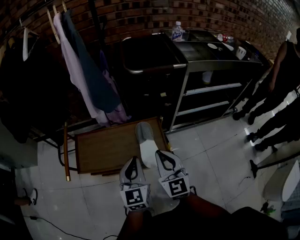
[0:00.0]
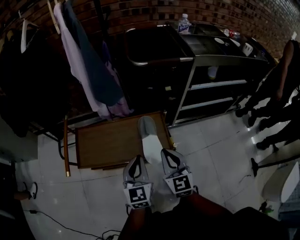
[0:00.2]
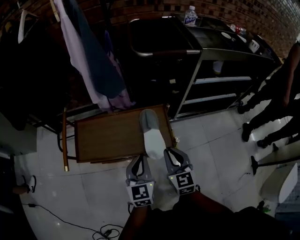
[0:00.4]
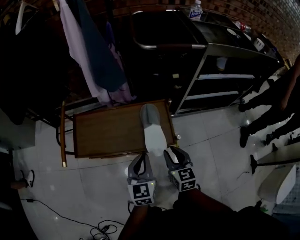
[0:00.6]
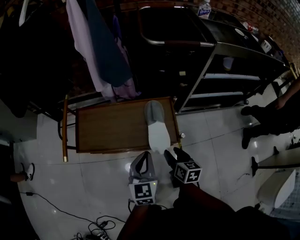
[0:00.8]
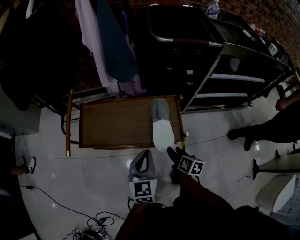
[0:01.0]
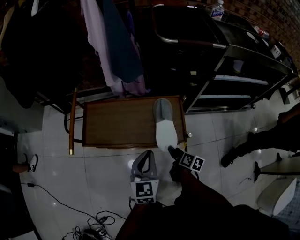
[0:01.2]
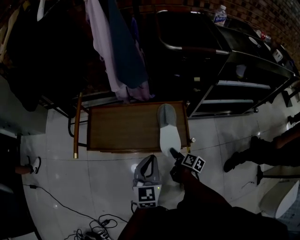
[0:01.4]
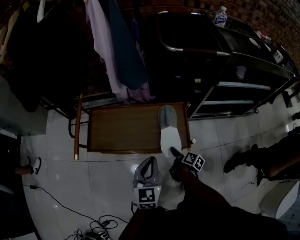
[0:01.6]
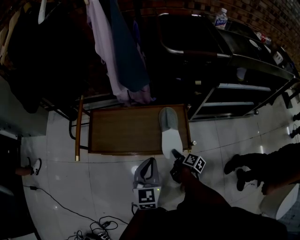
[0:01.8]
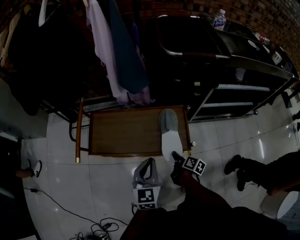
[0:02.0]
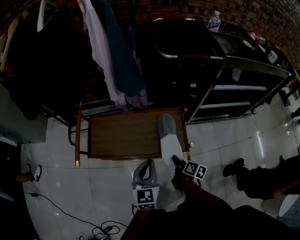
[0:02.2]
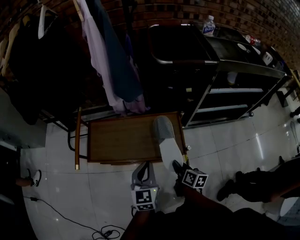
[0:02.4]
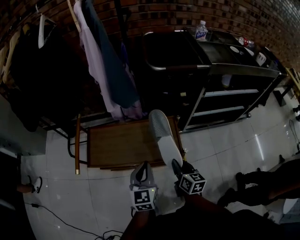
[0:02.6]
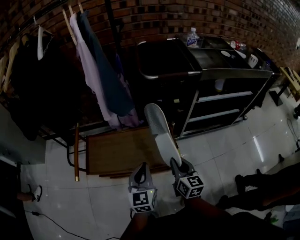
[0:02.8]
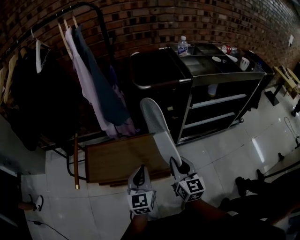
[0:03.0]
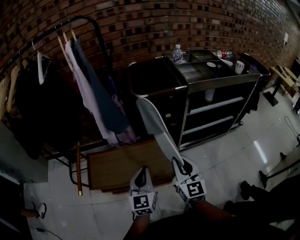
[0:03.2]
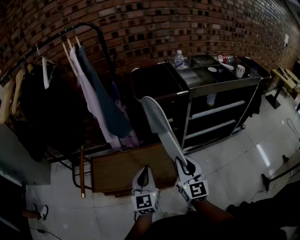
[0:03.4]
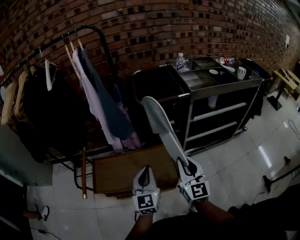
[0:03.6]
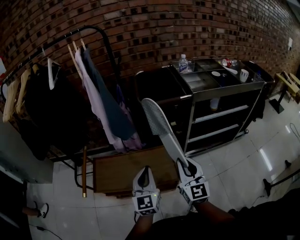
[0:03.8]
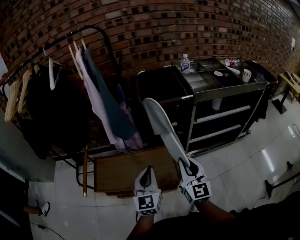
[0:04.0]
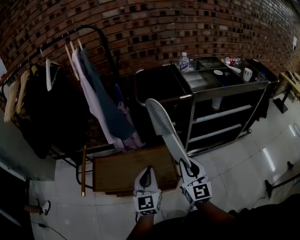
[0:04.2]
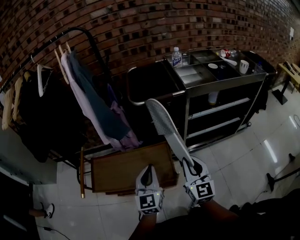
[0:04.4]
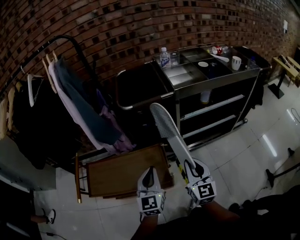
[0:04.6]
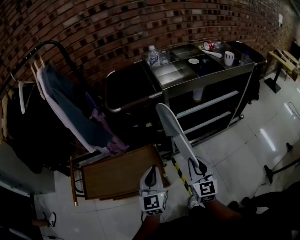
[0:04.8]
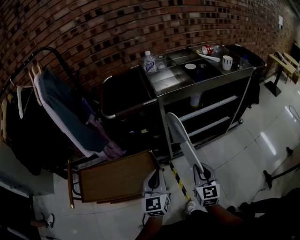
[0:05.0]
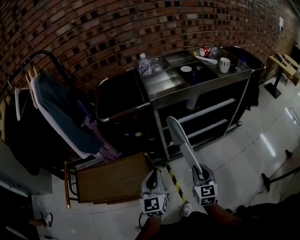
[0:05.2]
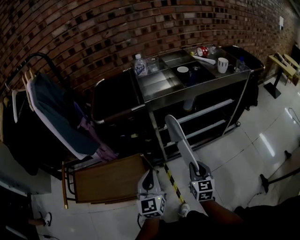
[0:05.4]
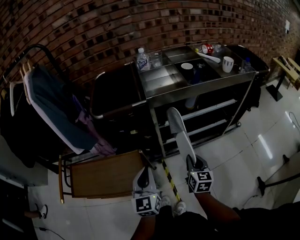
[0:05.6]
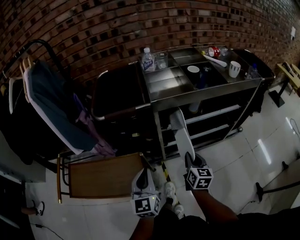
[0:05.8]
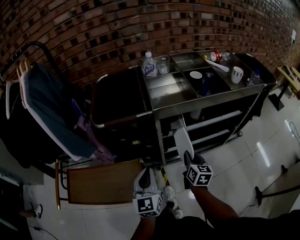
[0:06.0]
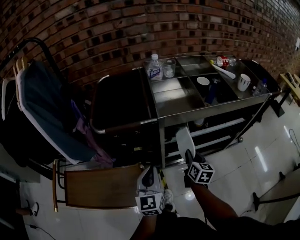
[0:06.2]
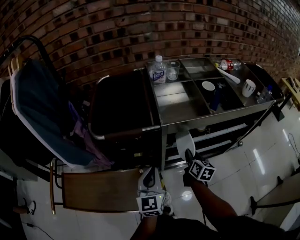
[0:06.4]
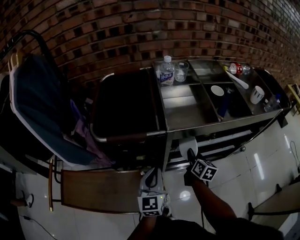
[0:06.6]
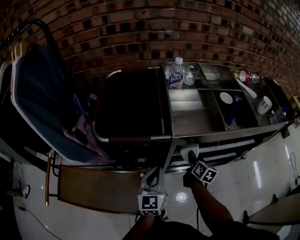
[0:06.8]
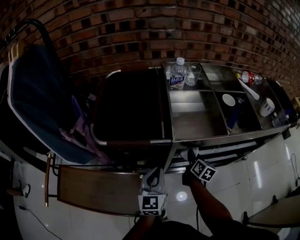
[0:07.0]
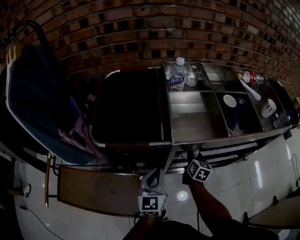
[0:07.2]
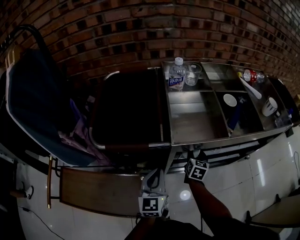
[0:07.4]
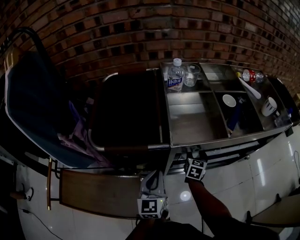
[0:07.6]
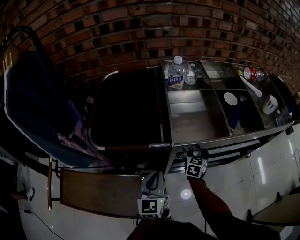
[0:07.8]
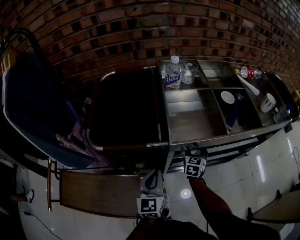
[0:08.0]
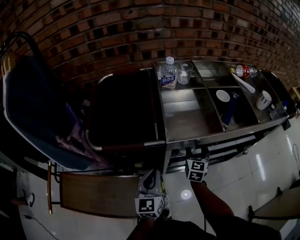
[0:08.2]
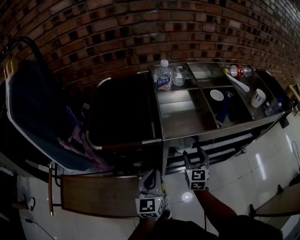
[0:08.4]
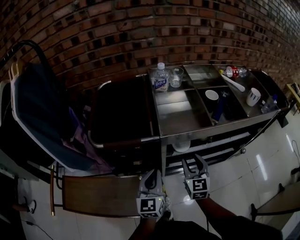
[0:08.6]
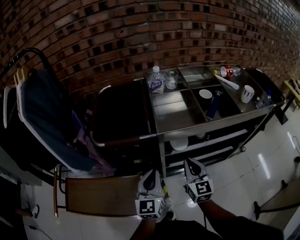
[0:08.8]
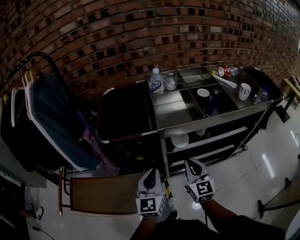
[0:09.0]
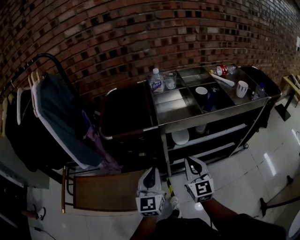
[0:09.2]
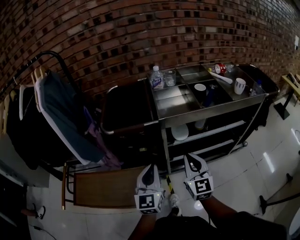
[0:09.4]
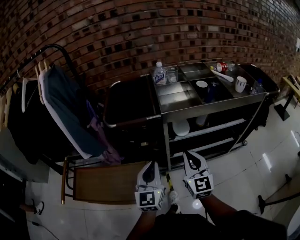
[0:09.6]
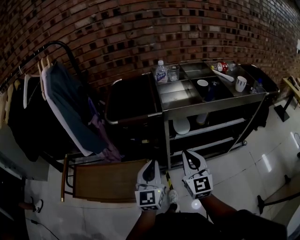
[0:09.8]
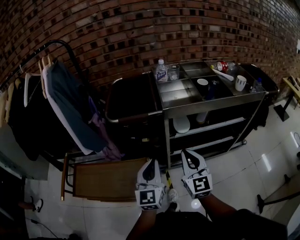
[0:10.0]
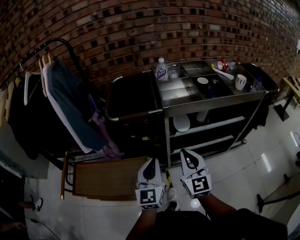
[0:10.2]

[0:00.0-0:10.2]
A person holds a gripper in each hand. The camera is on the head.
0:00.0 to 0:01.4: The left gripper shifts approximately 10 cm downward; the right gripper heads downward, covering approximately 30 cm, twists roughly 70 degrees clockwise, seen from behind, and opens up.
0:01.4 to 0:03.0: The left gripper heads upward, covering about 5 cm. The right gripper heads upward, covering about 30 cm, rotates around the line of its fingers by approximately 50 degrees, counterclockwise from behind, and closes.
0:03.0 to 0:04.4: Both grippers move to the right and upward, some 10 cm.
0:04.4 to 0:05.8: The right gripper moves to the right, forward and downward, some 30 cm, and rotates some 30 degrees. The left gripper moves to the right and forward, approximately 20 cm.
0:05.8 to 0:07.2: The two grippers go about 25 cm forward.
0:07.2 to 0:08.8: The left gripper goes roughly 10 cm upward and backward. The right gripper travels upward and backward by approximately 20 cm, swivels some 30 degrees, and opens and closes again.
0:08.8 to 0:10.2: The left gripper goes about 10 cm backward. Meanwhile the right gripper is displaced backward, upward and to the left by roughly 15 cm.

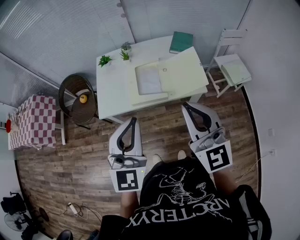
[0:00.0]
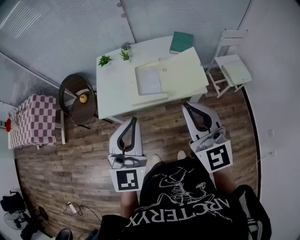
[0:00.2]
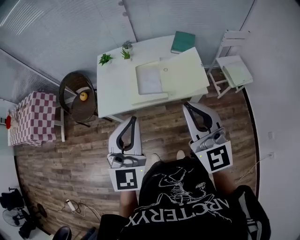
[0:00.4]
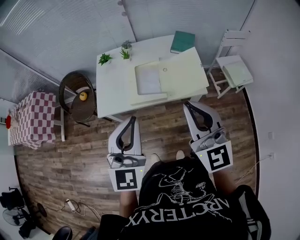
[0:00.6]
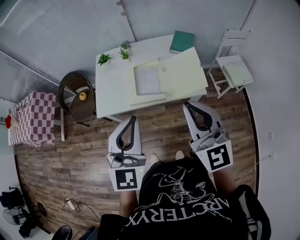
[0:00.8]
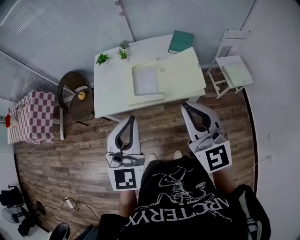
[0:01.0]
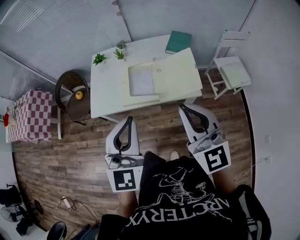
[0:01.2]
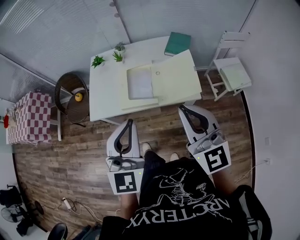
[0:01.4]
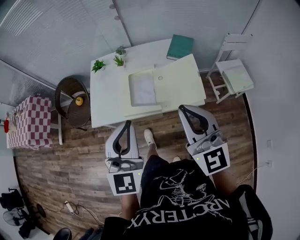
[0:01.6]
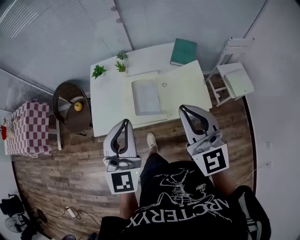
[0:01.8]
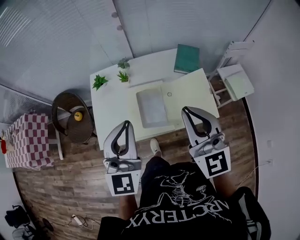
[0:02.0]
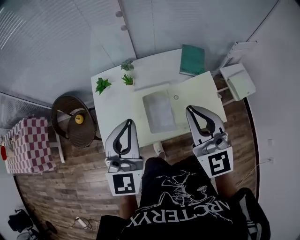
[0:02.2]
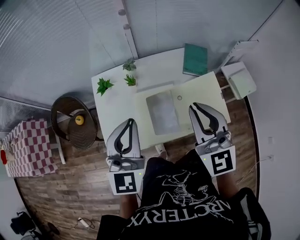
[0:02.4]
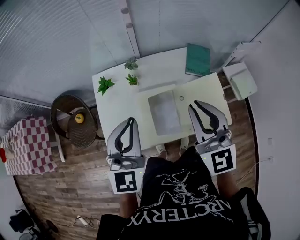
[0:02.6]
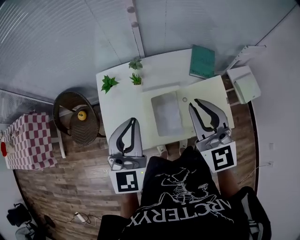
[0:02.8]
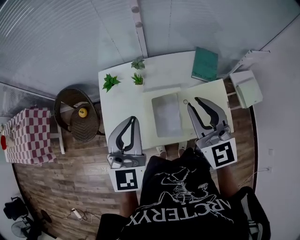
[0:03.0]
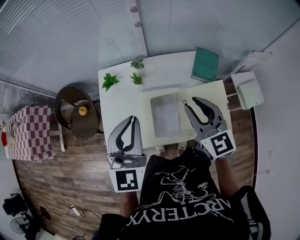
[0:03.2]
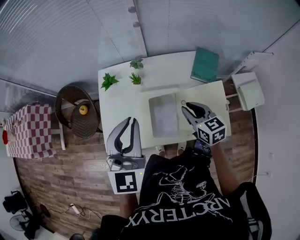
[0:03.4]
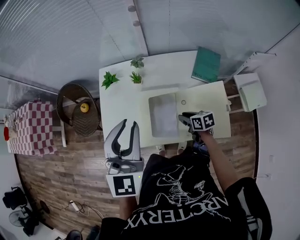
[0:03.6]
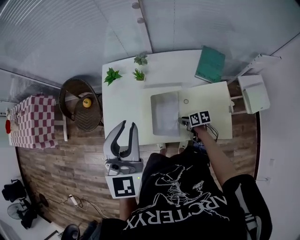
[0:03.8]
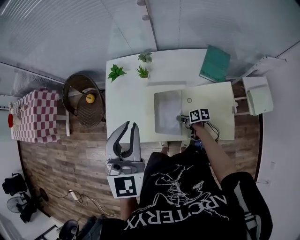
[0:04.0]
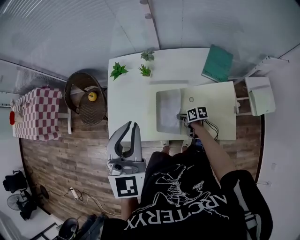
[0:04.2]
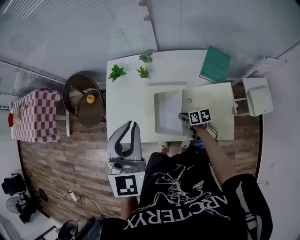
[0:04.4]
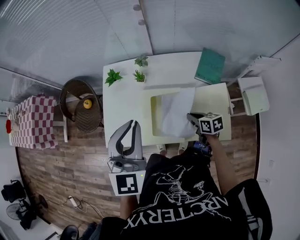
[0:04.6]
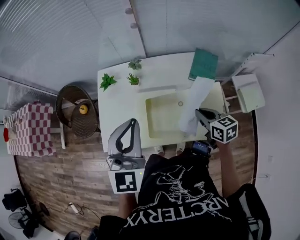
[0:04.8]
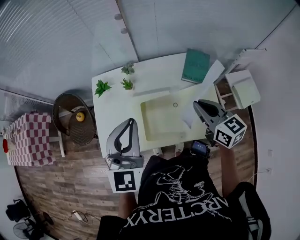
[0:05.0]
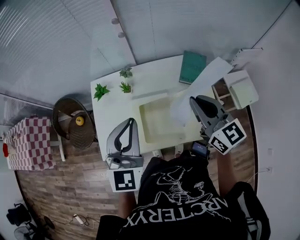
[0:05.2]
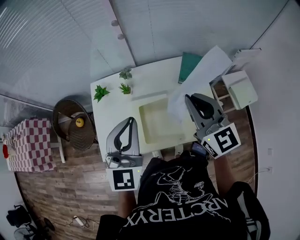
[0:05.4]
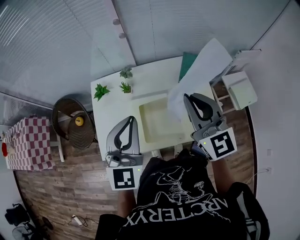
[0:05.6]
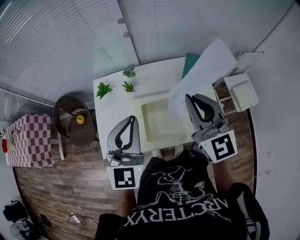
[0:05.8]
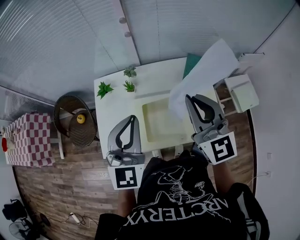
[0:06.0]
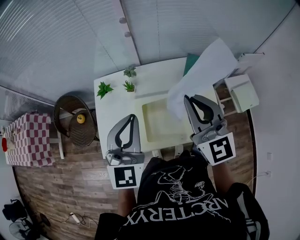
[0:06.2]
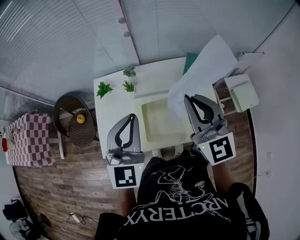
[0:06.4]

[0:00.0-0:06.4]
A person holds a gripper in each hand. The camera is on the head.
0:00.0 to 0:01.6: The left gripper moves forward, approximately 10 cm. The right gripper goes some 10 cm forward and to the right.
0:01.6 to 0:03.2: The left gripper moves forward and to the left, approximately 30 cm, while the right gripper shifts roughly 25 cm forward, and rotates roughly 20 degrees.
0:03.2 to 0:04.8: The right gripper is displaced downward by approximately 15 cm, and changes its angle by about 30 degrees.
0:04.8 to 0:06.4: The right gripper shifts some 25 cm upward, and tilts its fingers roughly 40 degrees upward.

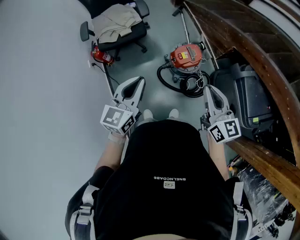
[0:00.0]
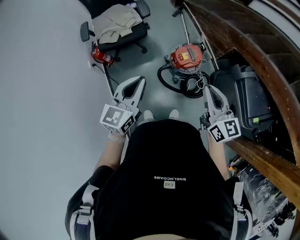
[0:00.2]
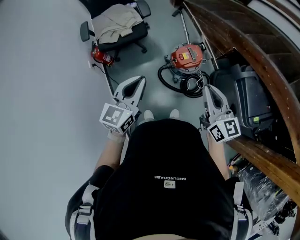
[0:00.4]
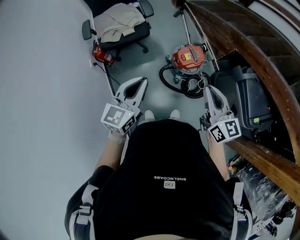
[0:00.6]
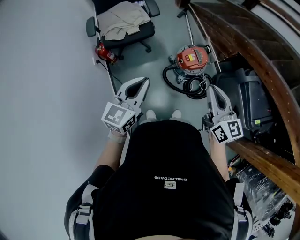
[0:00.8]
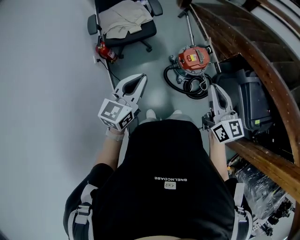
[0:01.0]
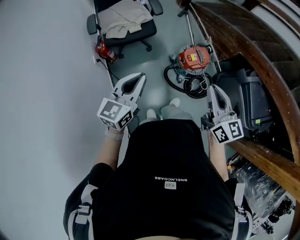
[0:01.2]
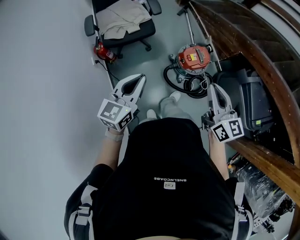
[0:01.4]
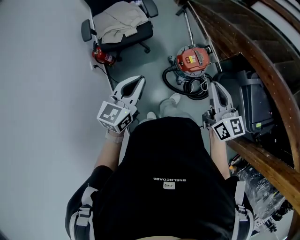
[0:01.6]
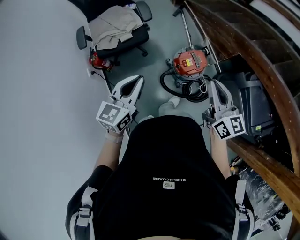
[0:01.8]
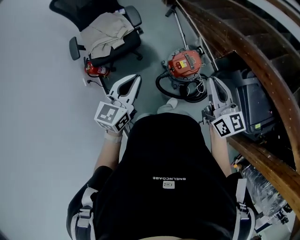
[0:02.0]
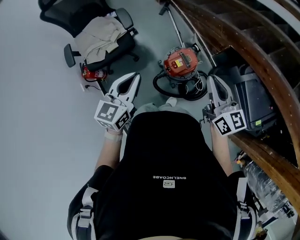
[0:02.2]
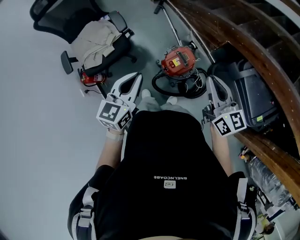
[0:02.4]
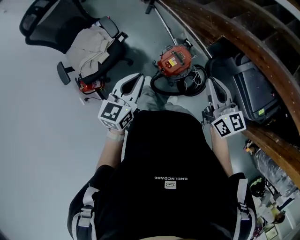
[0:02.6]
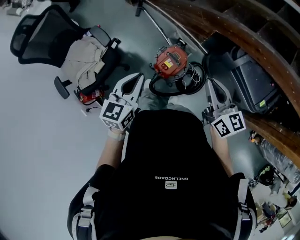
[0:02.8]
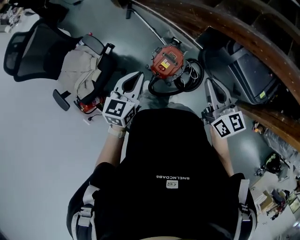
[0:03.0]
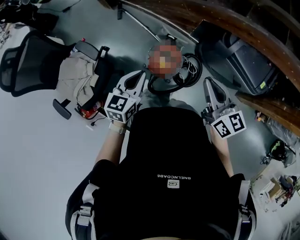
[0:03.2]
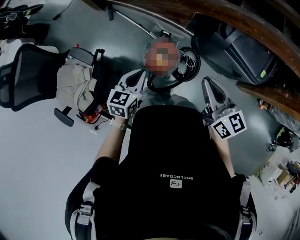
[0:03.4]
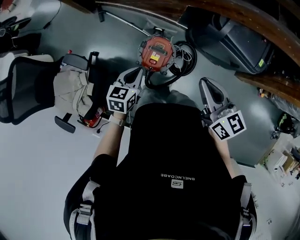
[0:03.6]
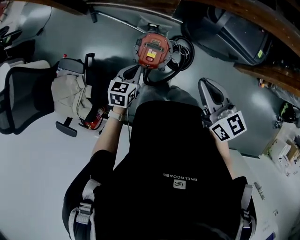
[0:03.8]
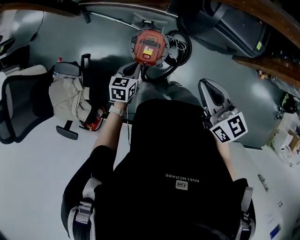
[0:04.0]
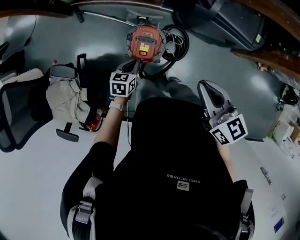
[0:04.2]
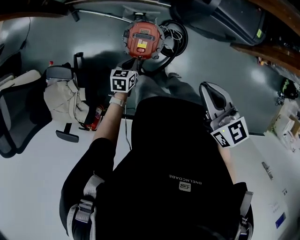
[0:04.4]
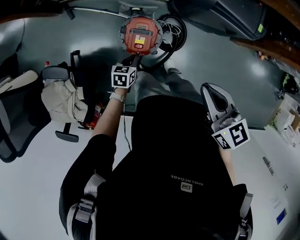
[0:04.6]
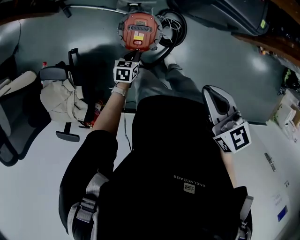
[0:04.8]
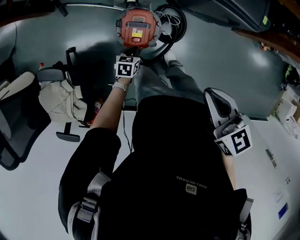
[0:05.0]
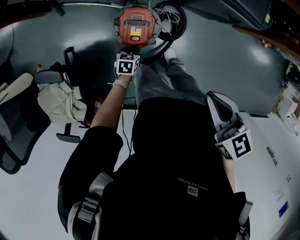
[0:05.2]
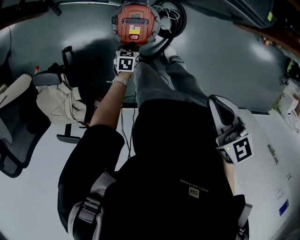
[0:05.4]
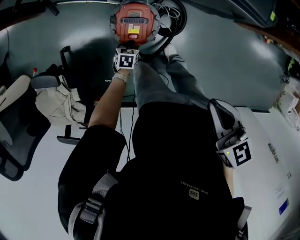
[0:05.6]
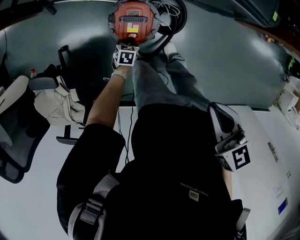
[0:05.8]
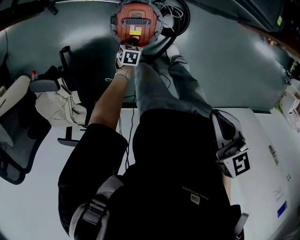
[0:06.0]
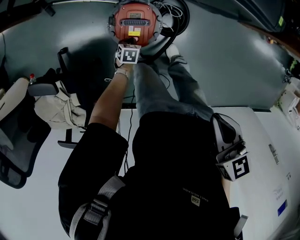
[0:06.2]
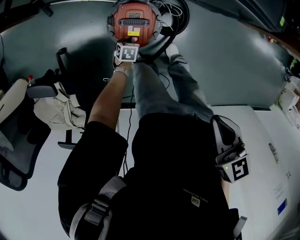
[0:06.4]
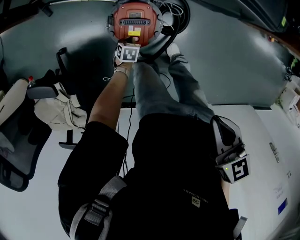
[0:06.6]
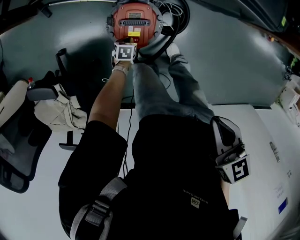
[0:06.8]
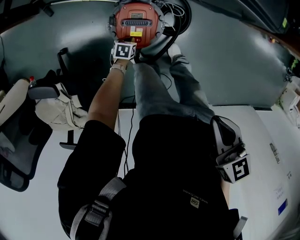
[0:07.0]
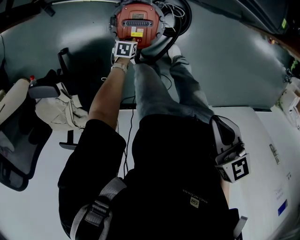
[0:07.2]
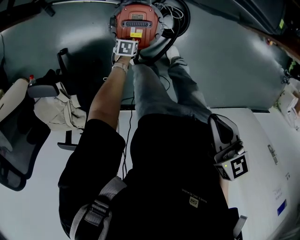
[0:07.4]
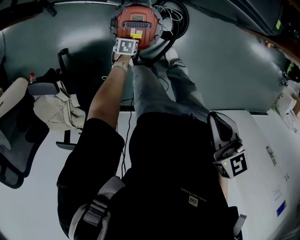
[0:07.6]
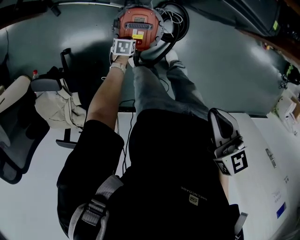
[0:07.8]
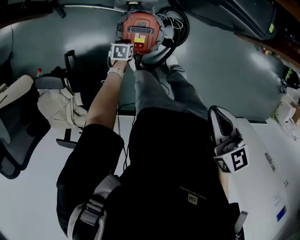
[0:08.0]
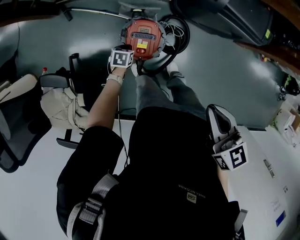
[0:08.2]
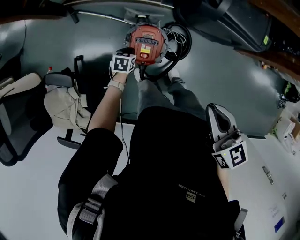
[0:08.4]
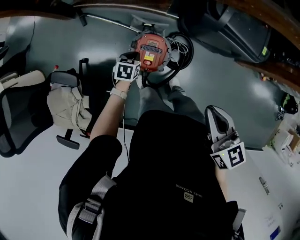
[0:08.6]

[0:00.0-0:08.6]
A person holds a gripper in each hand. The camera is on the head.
0:00.0 to 0:01.4: Both grippers move to the left, some 15 cm.
0:01.4 to 0:02.8: The two grippers go roughly 35 cm forward and to the right. The left gripper changes its angle by some 20 degrees. Meanwhile the right gripper changes its angle by some 20 degrees.
0:02.8 to 0:04.4: The left gripper moves downward, some 35 cm, and swivels approximately 40 degrees; the right gripper travels downward by some 5 cm, and rotates some 30 degrees.
0:04.4 to 0:05.8: The left gripper goes some 25 cm downward; the right gripper is displaced downward by roughly 10 cm.
0:05.8 to 0:07.2: The left gripper travels downward by about 10 cm.
0:07.2 to 0:08.6: The left gripper goes some 30 cm upward. Meanwhile the right gripper heads upward, covering about 15 cm.
